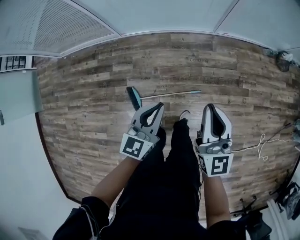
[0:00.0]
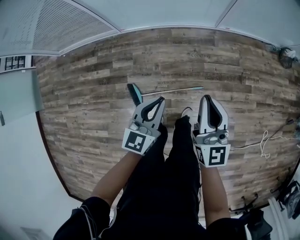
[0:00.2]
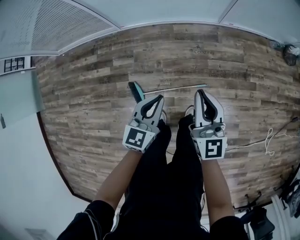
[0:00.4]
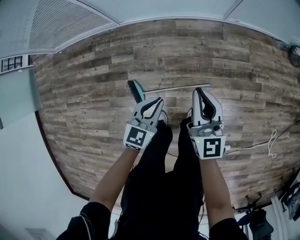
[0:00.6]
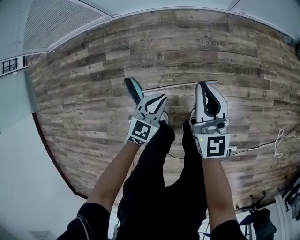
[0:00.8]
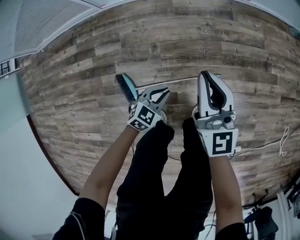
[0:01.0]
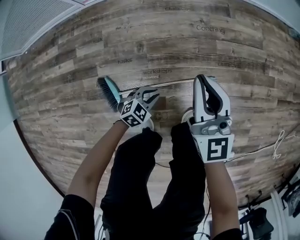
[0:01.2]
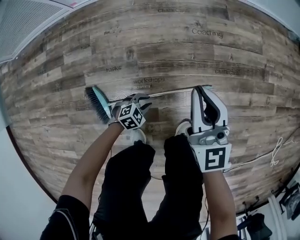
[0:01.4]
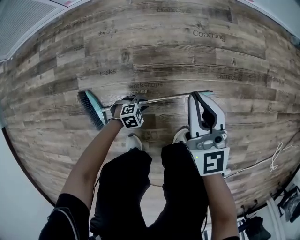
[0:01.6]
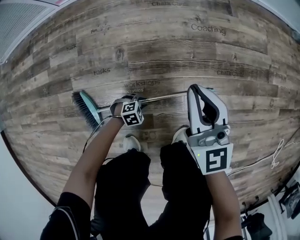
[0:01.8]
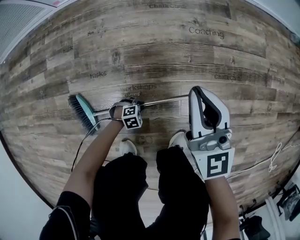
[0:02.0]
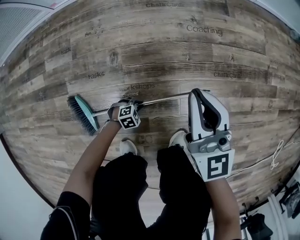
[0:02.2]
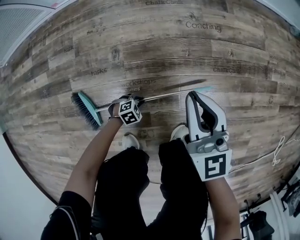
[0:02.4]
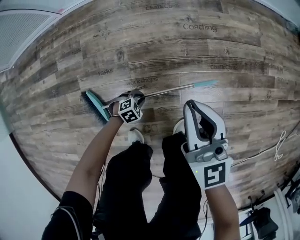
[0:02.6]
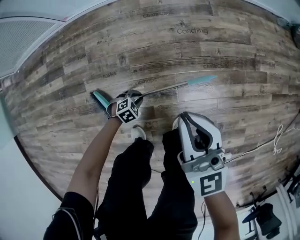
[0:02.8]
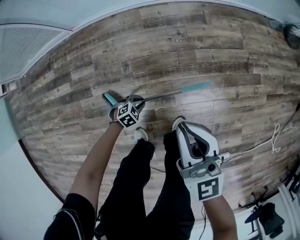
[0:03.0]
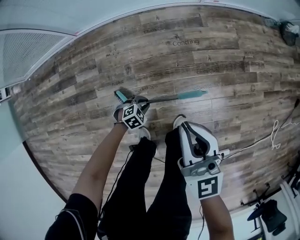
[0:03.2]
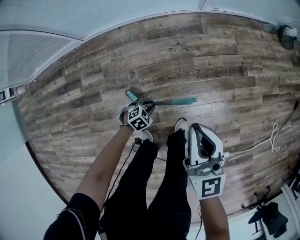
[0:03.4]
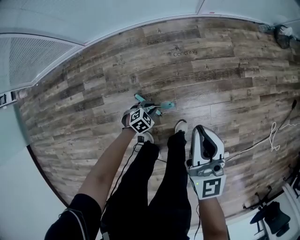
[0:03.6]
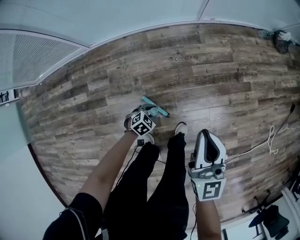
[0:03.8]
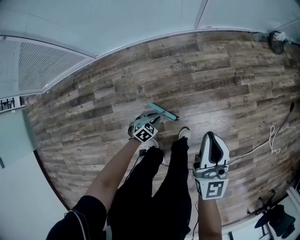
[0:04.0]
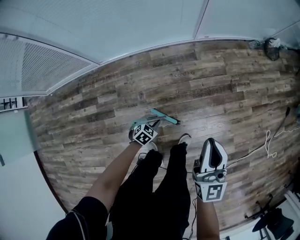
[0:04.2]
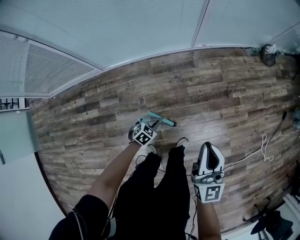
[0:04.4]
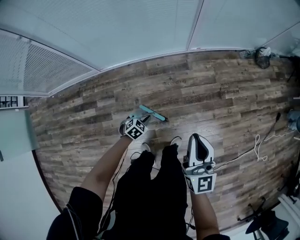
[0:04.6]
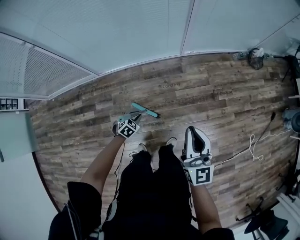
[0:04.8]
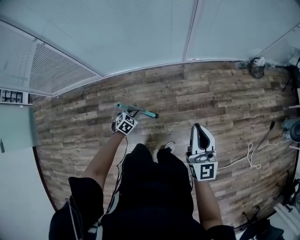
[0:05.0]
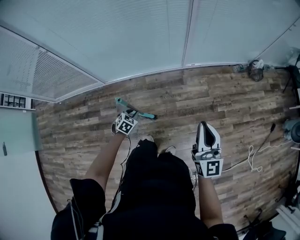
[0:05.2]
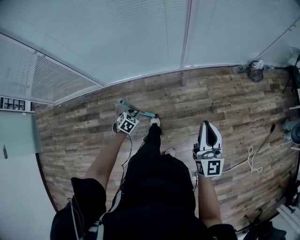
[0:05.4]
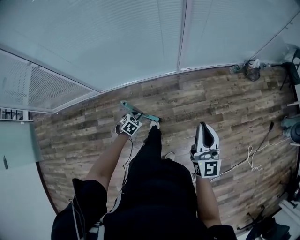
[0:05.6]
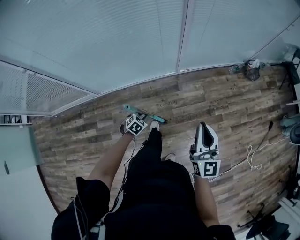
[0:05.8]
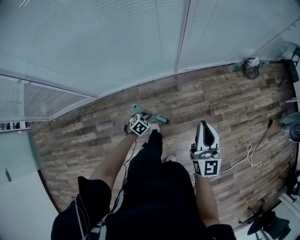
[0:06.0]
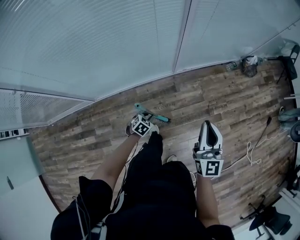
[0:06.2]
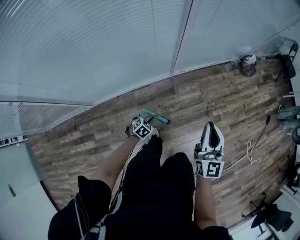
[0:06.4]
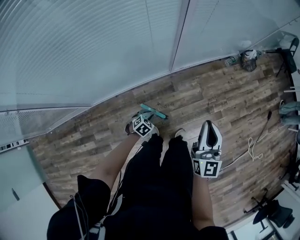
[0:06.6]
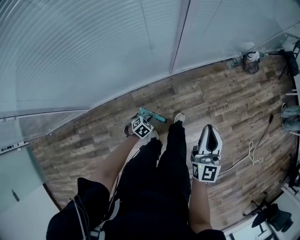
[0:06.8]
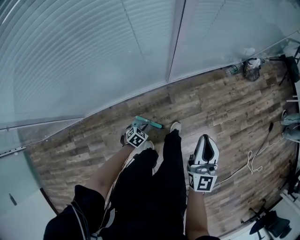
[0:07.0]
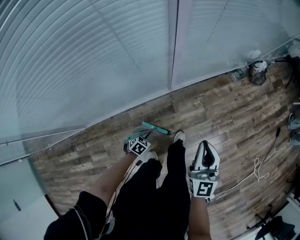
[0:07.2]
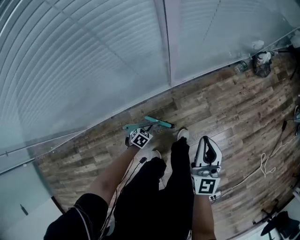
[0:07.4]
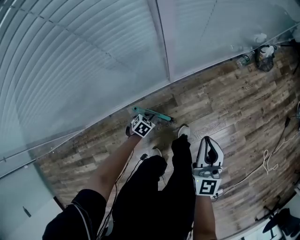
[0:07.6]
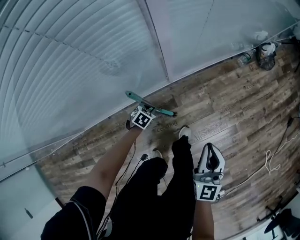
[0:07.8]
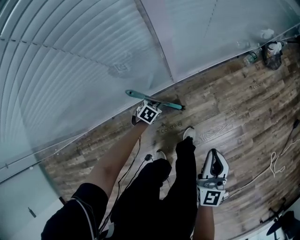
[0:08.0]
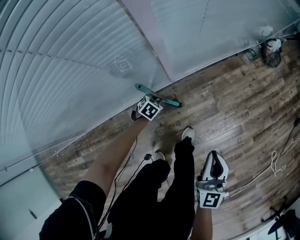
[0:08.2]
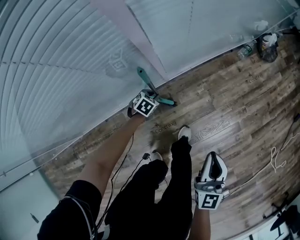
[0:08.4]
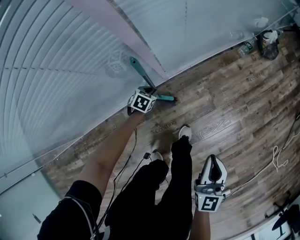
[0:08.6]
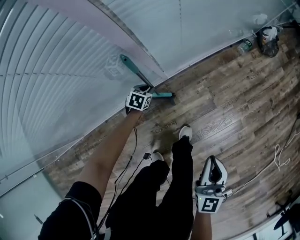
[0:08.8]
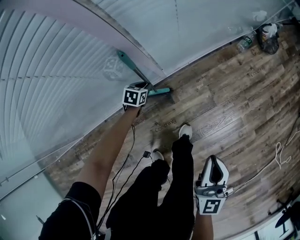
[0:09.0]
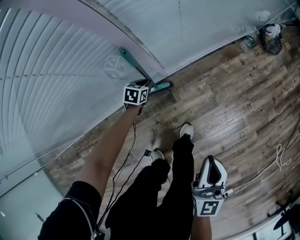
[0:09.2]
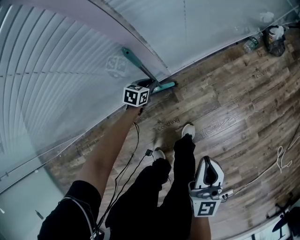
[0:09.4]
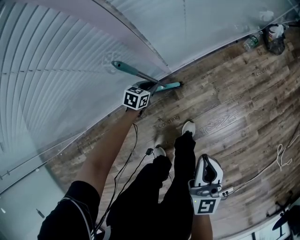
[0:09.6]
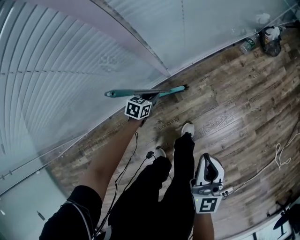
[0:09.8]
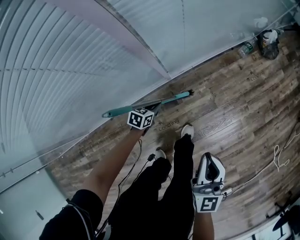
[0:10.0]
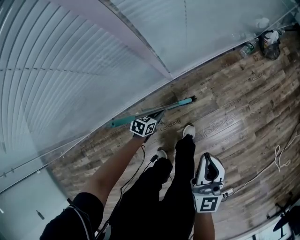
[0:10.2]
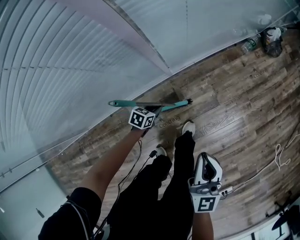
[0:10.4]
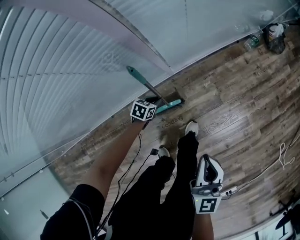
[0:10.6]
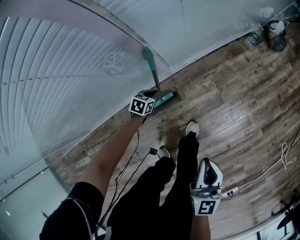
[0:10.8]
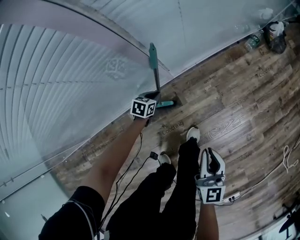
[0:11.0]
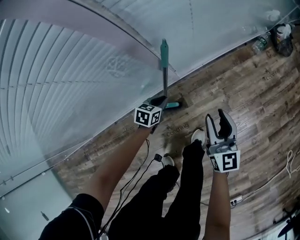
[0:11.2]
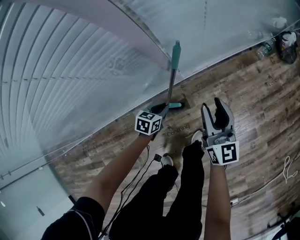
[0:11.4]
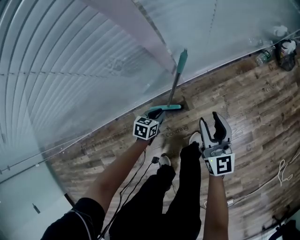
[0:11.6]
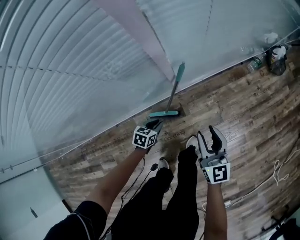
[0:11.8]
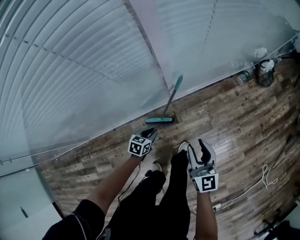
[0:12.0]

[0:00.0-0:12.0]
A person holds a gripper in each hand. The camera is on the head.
0:00.0 to 0:01.6: The two grippers go roughly 70 cm downward. The left gripper points its fingers approximately 50 degrees further downward, and opens up.
0:01.6 to 0:03.0: The grippers both shift upward by approximately 20 cm.
0:03.0 to 0:04.4: The right gripper travels upward and to the right by some 30 cm; the left gripper goes about 30 cm upward.
0:04.4 to 0:06.0: The right gripper goes approximately 25 cm forward. The left gripper is displaced forward and upward by about 25 cm.
0:06.0 to 0:07.6: The right gripper is displaced downward and forward by roughly 35 cm. Meanwhile the left gripper shifts about 35 cm forward and downward.
0:07.6 to 0:09.0: The right gripper shifts approximately 10 cm downward and to the right, while the left gripper shifts about 20 cm forward.
0:09.0 to 0:10.4: The left gripper heads backward and to the right, covering about 15 cm; the right gripper shifts by about 5 cm.
0:10.4 to 0:12.0: The left gripper shifts about 10 cm upward; the right gripper moves to the left, approximately 5 cm, goes forward and returns, roughly 15 cm each way, and opens.

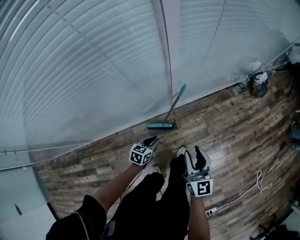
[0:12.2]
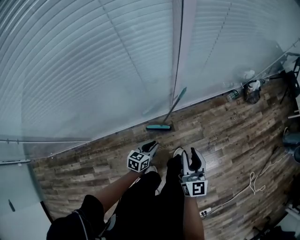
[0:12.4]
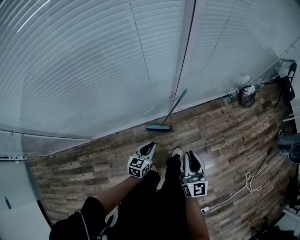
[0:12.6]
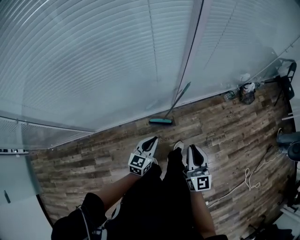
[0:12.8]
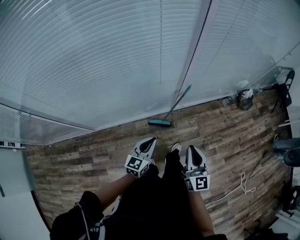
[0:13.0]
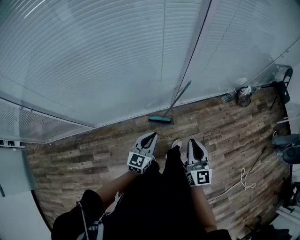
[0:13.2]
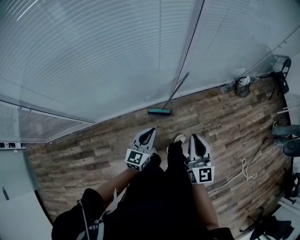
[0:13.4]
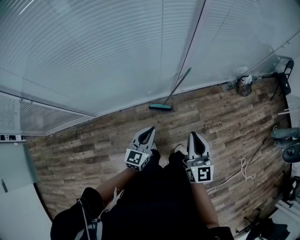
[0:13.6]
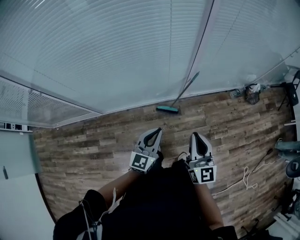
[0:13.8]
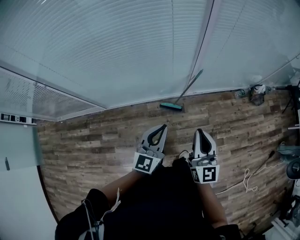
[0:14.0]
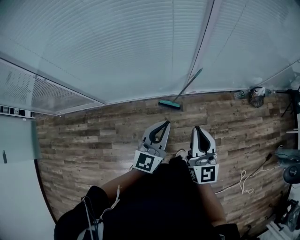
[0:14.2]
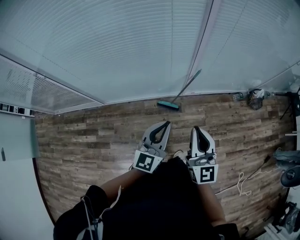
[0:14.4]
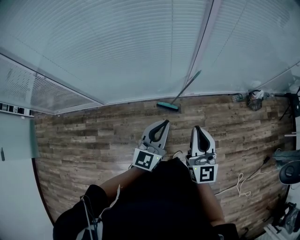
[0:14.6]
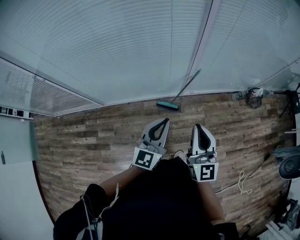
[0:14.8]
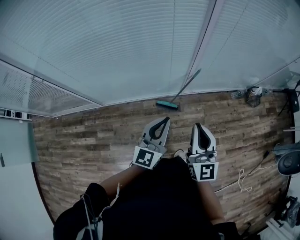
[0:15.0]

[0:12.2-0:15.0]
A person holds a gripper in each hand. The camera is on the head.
0:12.2 to 0:13.6: The grippers both shift upward and backward by some 35 cm. The right gripper closes its fingers, while the left gripper points its fingers roughly 30 degrees further upward.
0:13.6 to 0:15.0: The right gripper heads upward, covering some 5 cm. Meanwhile the left gripper travels upward and to the right by about 15 cm.

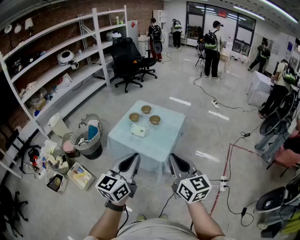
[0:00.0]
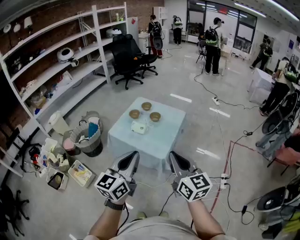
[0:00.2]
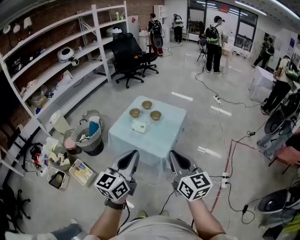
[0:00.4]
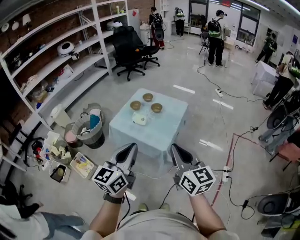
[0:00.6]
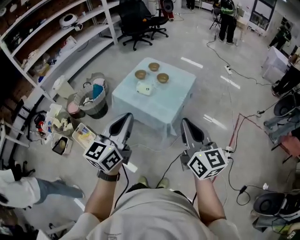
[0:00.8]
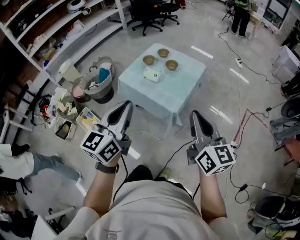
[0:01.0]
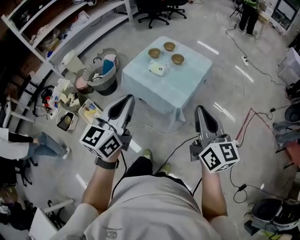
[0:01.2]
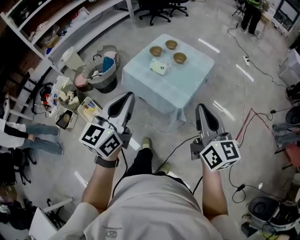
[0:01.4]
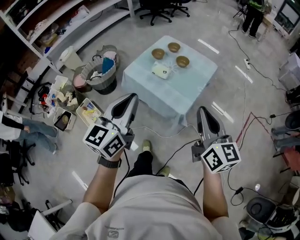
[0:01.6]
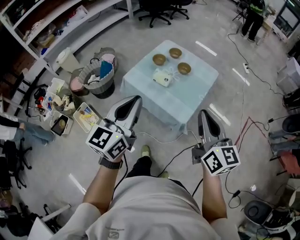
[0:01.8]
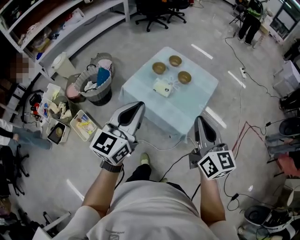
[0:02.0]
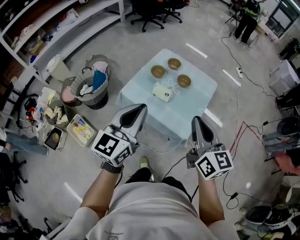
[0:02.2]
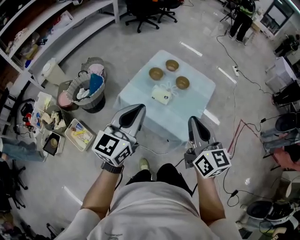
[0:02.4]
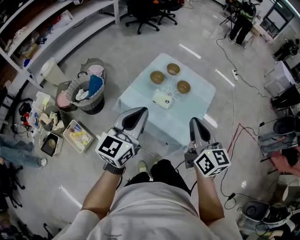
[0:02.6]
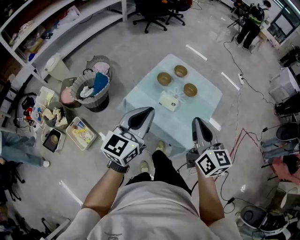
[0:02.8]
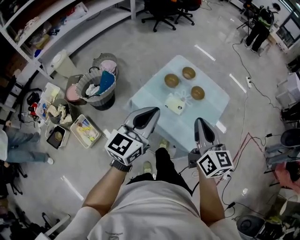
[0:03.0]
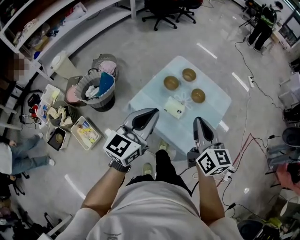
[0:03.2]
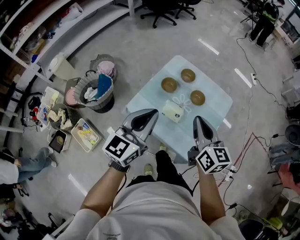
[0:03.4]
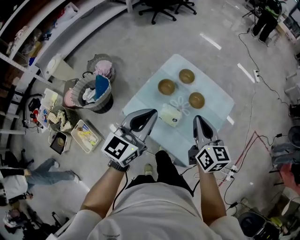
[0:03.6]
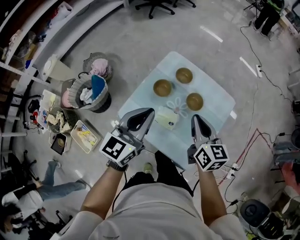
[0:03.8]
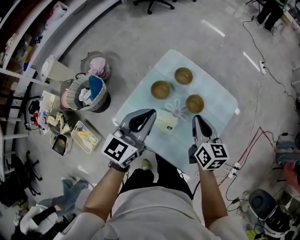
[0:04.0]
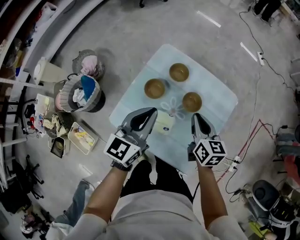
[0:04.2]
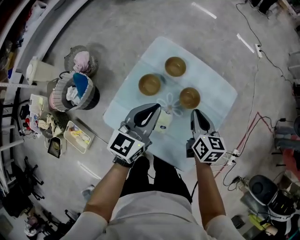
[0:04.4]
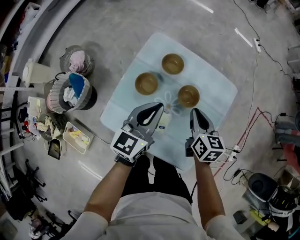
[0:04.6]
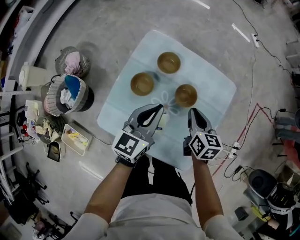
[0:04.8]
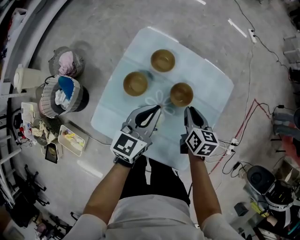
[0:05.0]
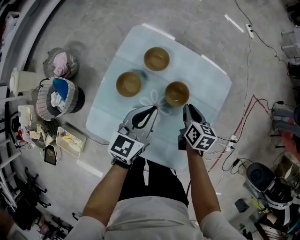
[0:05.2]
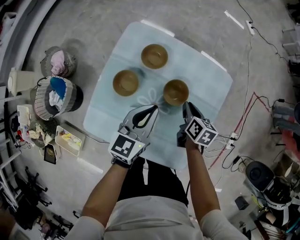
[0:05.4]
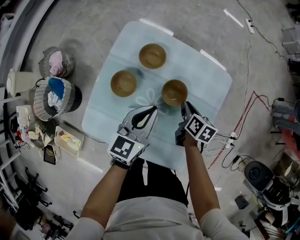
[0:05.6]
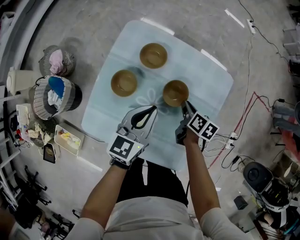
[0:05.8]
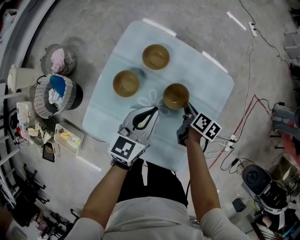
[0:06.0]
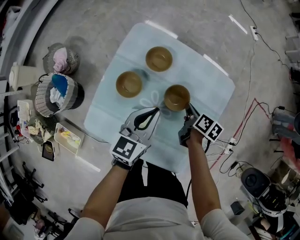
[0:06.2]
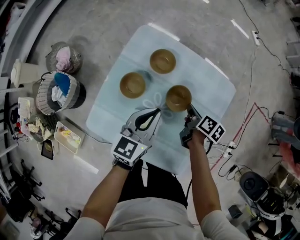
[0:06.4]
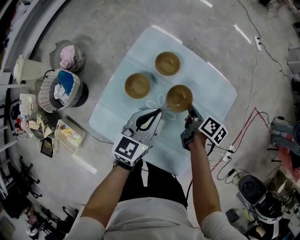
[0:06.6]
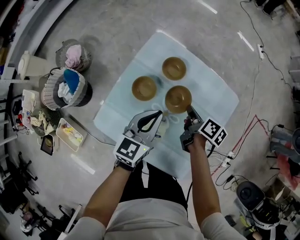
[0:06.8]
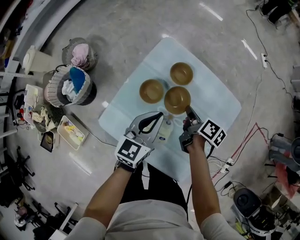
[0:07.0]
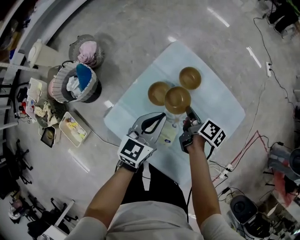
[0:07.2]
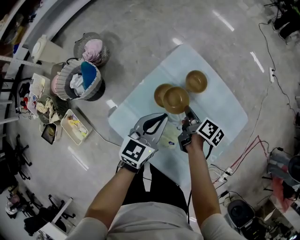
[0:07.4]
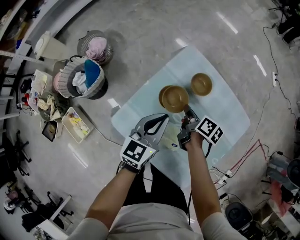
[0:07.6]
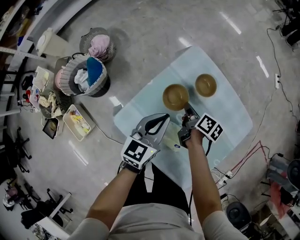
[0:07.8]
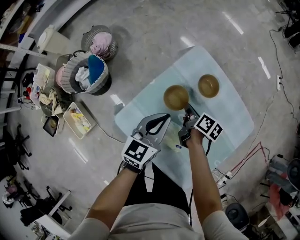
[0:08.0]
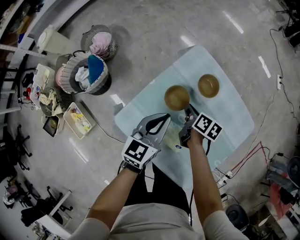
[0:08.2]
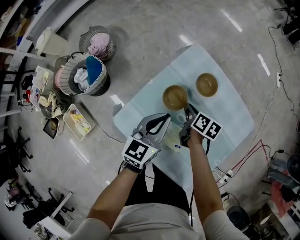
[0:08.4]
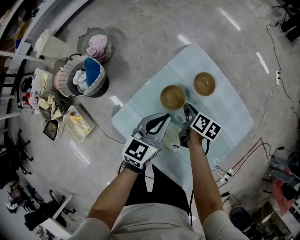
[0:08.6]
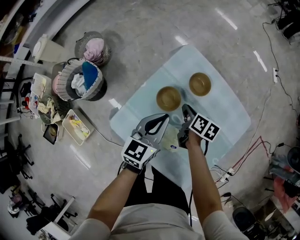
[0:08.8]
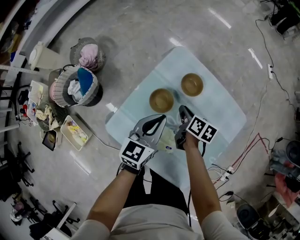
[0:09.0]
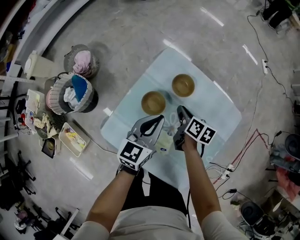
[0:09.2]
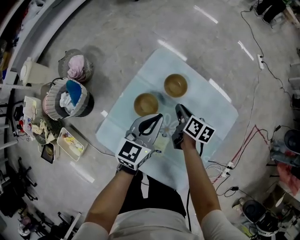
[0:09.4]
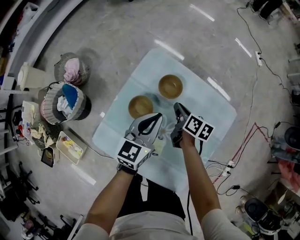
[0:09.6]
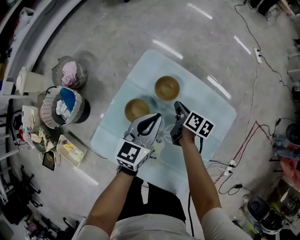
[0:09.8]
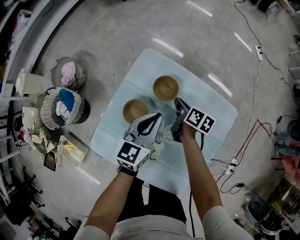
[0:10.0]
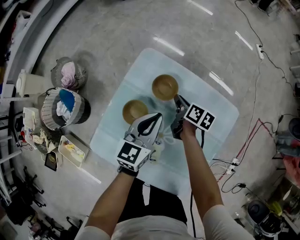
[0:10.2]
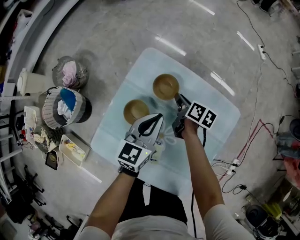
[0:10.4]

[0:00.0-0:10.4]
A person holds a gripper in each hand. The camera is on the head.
0:00.0 to 0:01.4: The left gripper heads to the left, covering about 5 cm. Meanwhile the right gripper shifts by approximately 5 cm.
0:01.4 to 0:03.0: Both grippers travel together forward and to the left, some 30 cm.
0:03.0 to 0:04.4: The two grippers go approximately 35 cm forward and downward. The right gripper swivels about 30 degrees.
0:04.4 to 0:06.0: The left gripper heads downward and to the right, covering roughly 15 cm, while the right gripper shifts some 20 cm downward, and turns by some 40 degrees.
0:06.0 to 0:07.4: The right gripper travels to the left by roughly 15 cm. Meanwhile the left gripper is displaced to the left by about 10 cm.
0:09.0 to 0:10.4: The left gripper goes approximately 10 cm to the right and forward; the right gripper is displaced forward and to the right by approximately 15 cm.
